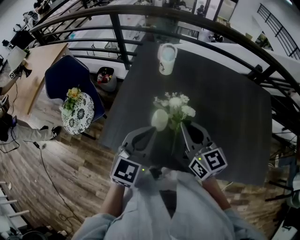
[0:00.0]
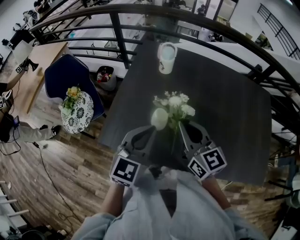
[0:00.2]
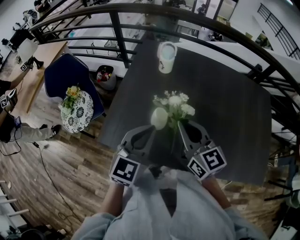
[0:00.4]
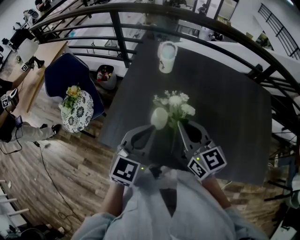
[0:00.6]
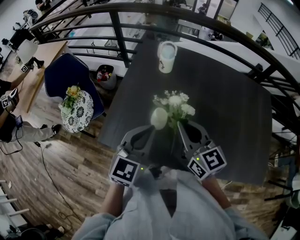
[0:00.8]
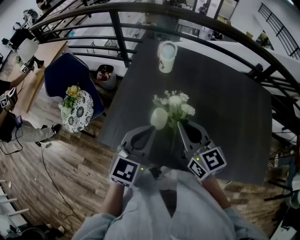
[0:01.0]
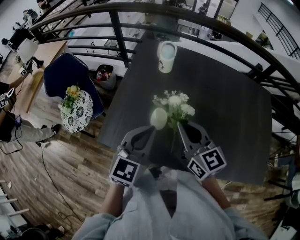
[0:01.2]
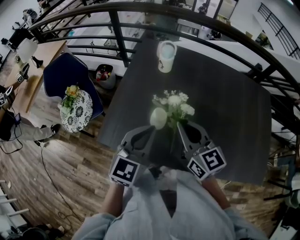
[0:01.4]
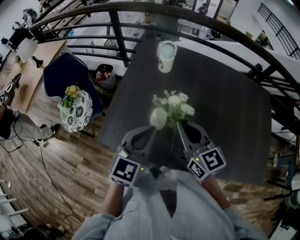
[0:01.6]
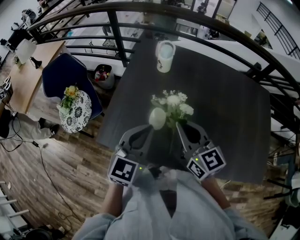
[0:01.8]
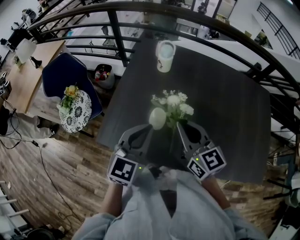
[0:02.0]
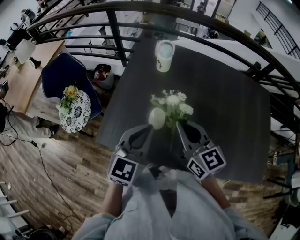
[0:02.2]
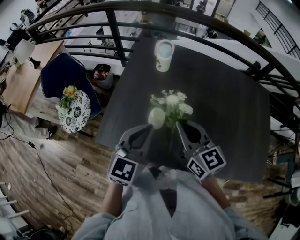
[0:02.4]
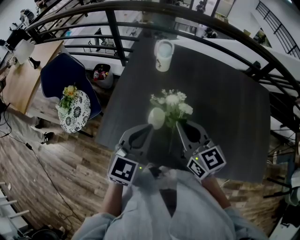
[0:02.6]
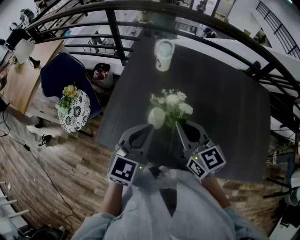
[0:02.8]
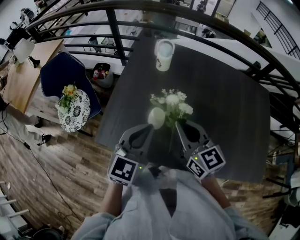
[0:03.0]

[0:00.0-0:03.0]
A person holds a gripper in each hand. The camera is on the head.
0:00.0 to 0:01.6: The two grippers keep their place.
0:01.6 to 0:03.0: Both grippers stay about where they are.

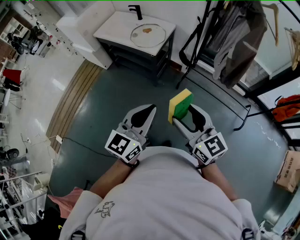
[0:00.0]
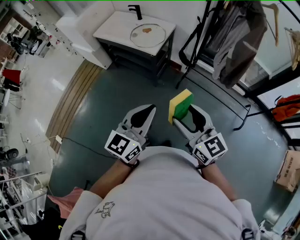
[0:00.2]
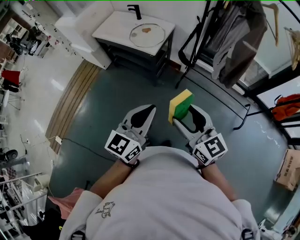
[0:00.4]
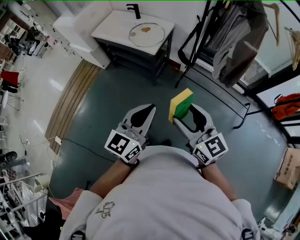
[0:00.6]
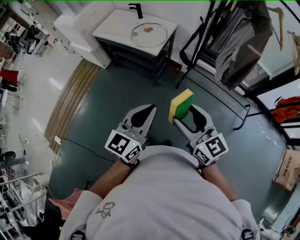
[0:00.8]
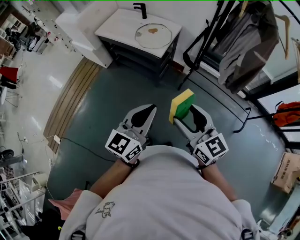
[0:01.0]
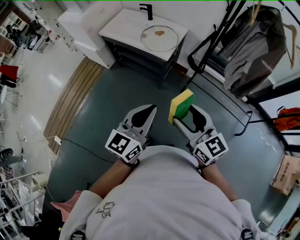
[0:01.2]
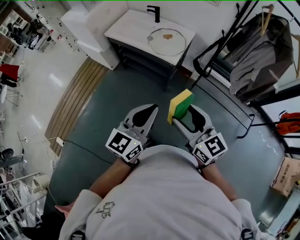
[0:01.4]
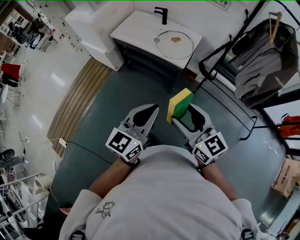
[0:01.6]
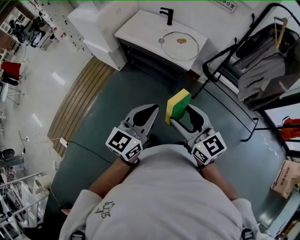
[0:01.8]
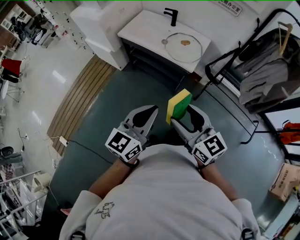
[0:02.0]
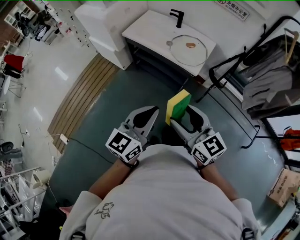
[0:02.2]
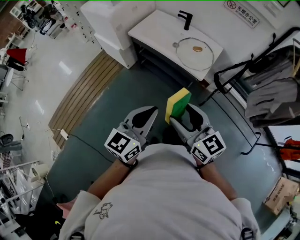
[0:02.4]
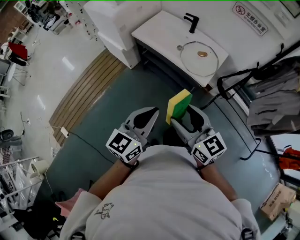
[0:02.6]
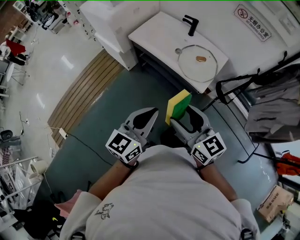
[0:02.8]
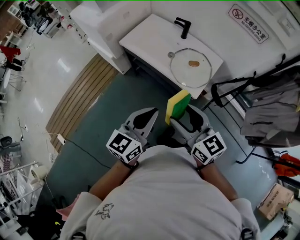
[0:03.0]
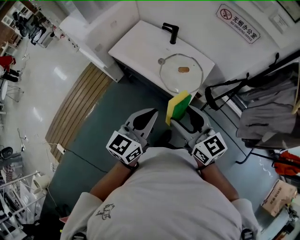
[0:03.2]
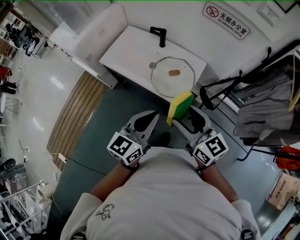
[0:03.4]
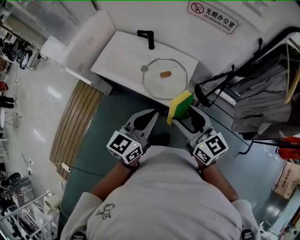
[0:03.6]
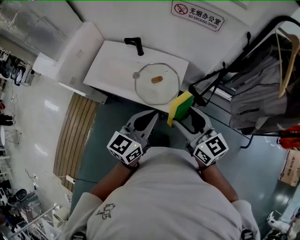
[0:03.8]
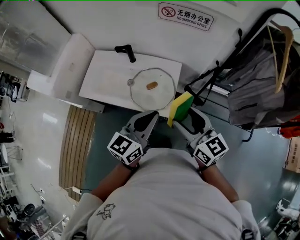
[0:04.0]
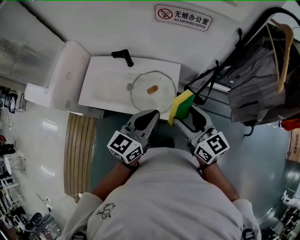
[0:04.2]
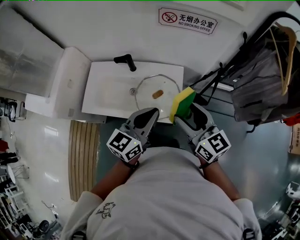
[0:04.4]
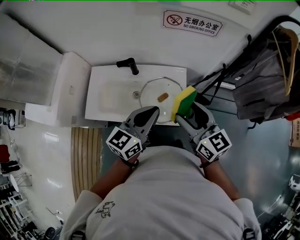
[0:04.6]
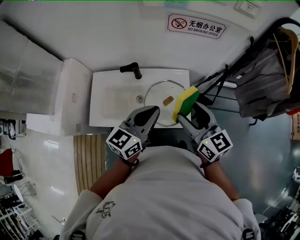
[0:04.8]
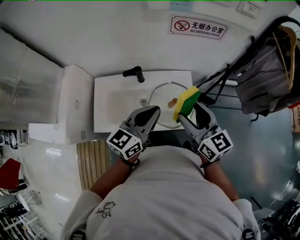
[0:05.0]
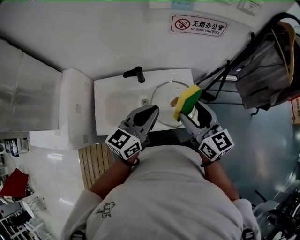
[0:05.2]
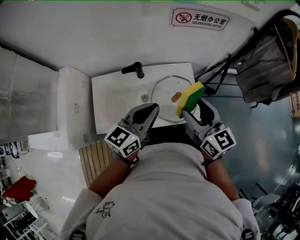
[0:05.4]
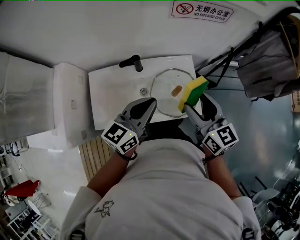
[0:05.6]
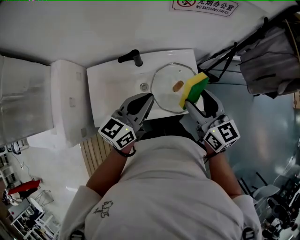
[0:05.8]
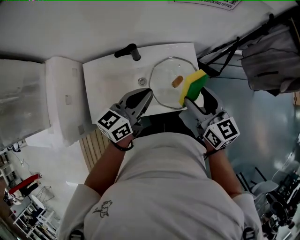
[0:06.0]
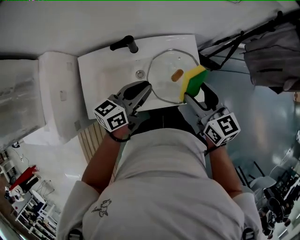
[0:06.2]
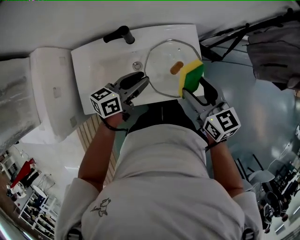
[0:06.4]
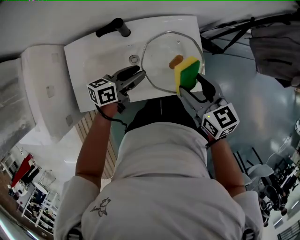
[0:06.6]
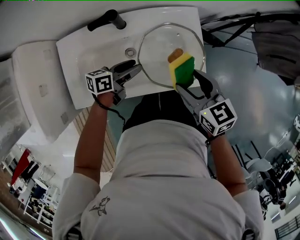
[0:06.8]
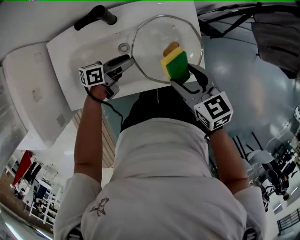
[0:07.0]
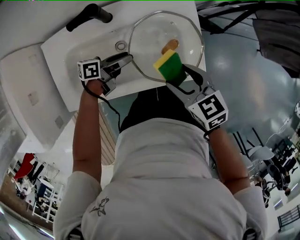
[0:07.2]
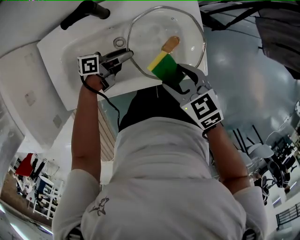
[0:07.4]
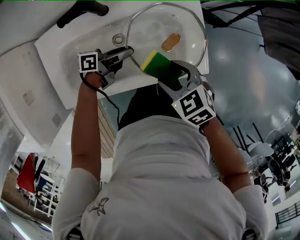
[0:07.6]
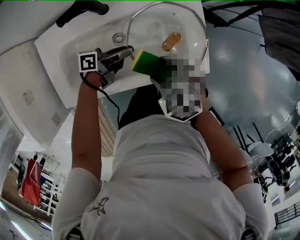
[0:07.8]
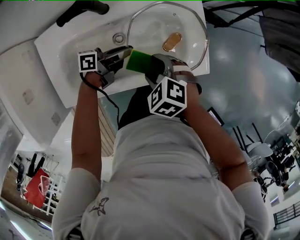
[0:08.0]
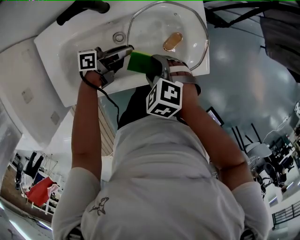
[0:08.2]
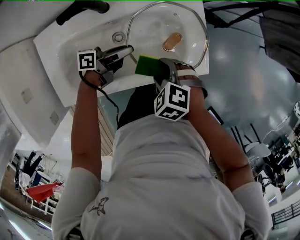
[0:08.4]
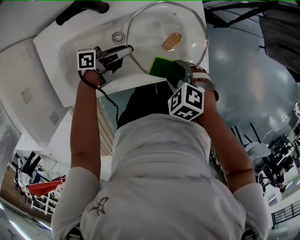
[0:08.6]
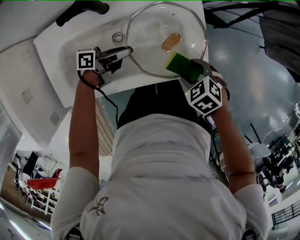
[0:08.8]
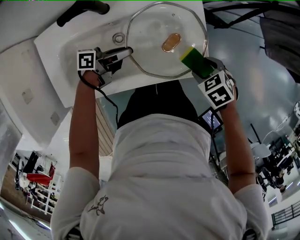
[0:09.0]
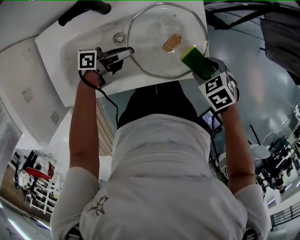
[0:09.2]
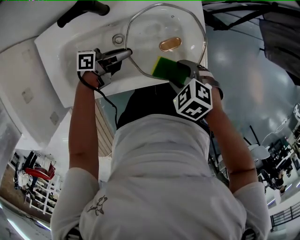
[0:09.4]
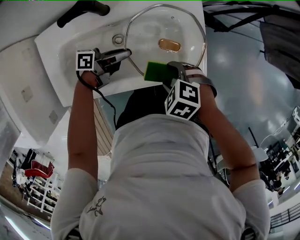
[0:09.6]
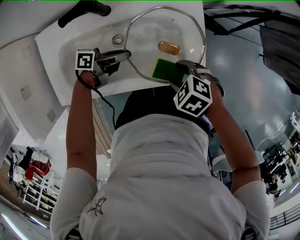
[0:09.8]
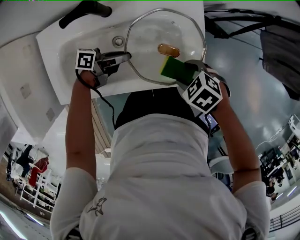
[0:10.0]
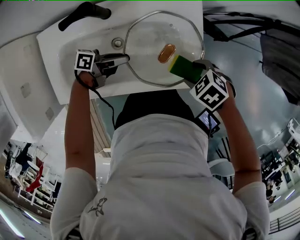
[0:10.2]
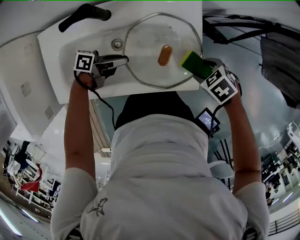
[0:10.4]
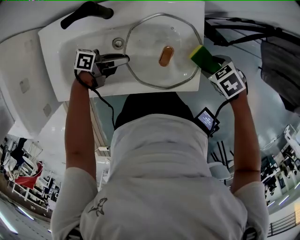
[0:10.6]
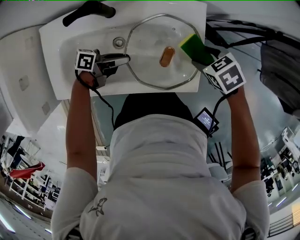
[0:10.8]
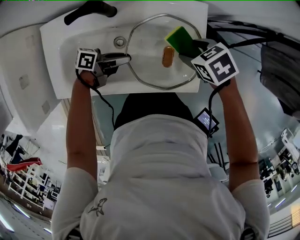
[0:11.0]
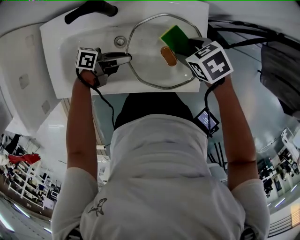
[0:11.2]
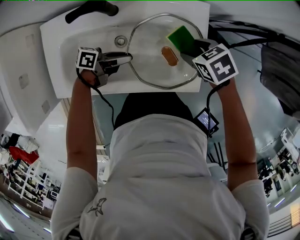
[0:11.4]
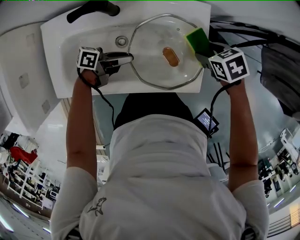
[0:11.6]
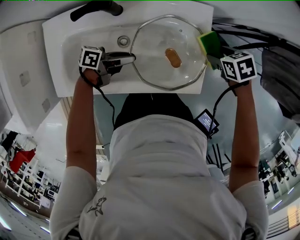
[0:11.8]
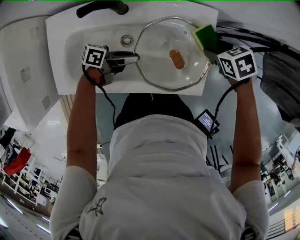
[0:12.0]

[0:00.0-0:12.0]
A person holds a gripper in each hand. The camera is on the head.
0:00.0 to 0:01.6: Both grippers move to the left and forward, roughly 25 cm.
0:01.6 to 0:03.0: The grippers both shift forward by about 25 cm.
0:03.0 to 0:04.4: The left gripper changes place by approximately 30 cm, and turns by roughly 30 degrees. The right gripper changes place by roughly 25 cm, and turns by about 30 degrees.
0:04.4 to 0:06.0: The left gripper heads to the left, forward and downward, covering some 20 cm, and swivels about 20 degrees. The right gripper shifts roughly 15 cm to the left, downward and forward, and rotates about 20 degrees.
0:06.0 to 0:07.6: The grippers both shift downward by roughly 30 cm. The left gripper twists roughly 40 degrees counterclockwise, seen from behind, and opens its fingers, while the right gripper angles its fingers downward, by roughly 40 degrees.
0:07.6 to 0:09.0: The left gripper closes. Meanwhile the right gripper ends up about 15 cm from where it was, and rotates some 20 degrees.
0:10.4 to 0:12.0: The right gripper shifts by about 15 cm.

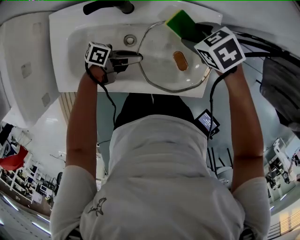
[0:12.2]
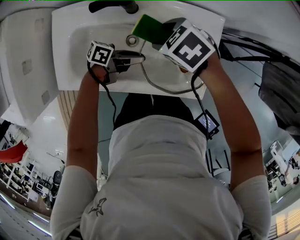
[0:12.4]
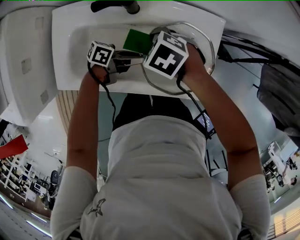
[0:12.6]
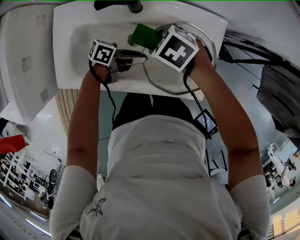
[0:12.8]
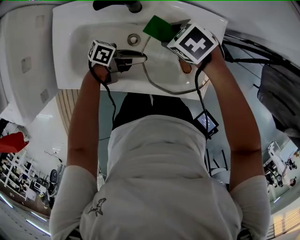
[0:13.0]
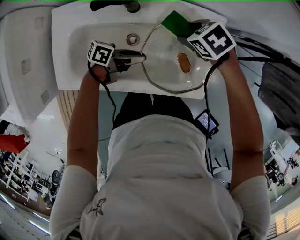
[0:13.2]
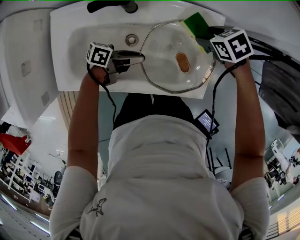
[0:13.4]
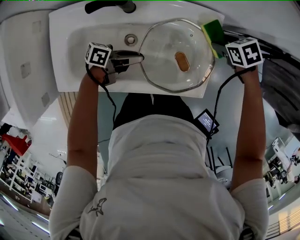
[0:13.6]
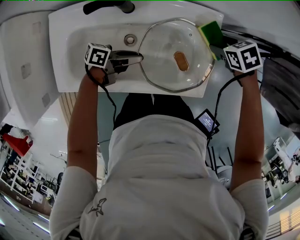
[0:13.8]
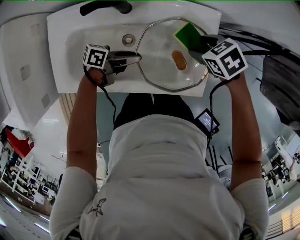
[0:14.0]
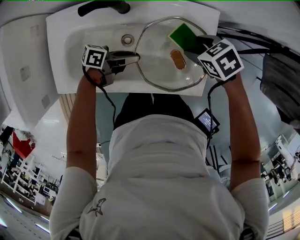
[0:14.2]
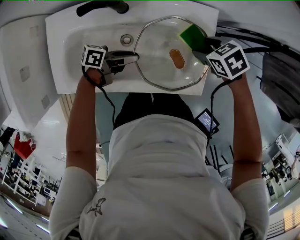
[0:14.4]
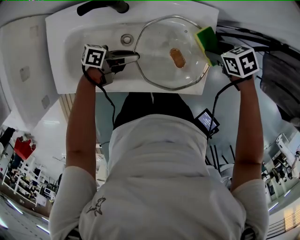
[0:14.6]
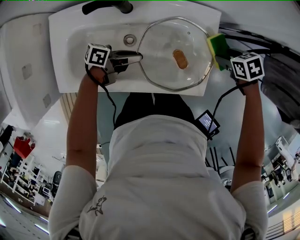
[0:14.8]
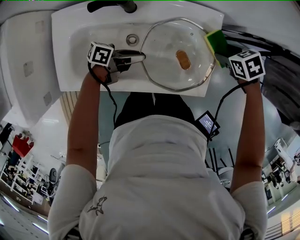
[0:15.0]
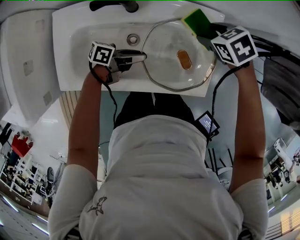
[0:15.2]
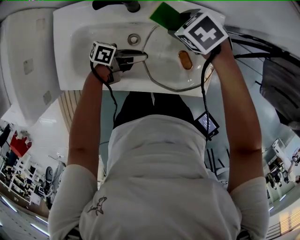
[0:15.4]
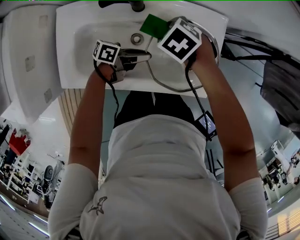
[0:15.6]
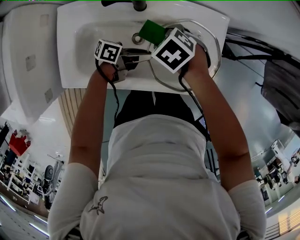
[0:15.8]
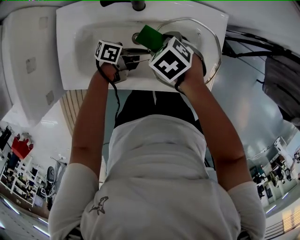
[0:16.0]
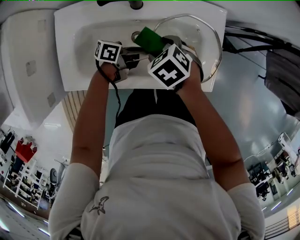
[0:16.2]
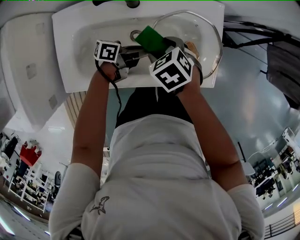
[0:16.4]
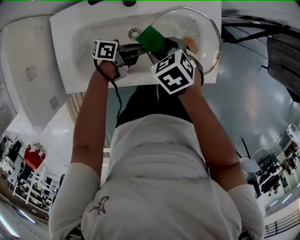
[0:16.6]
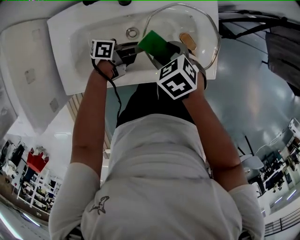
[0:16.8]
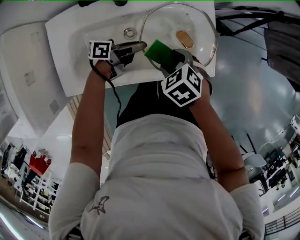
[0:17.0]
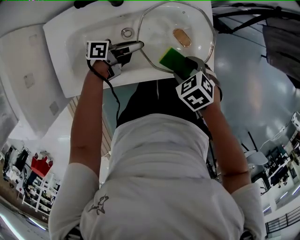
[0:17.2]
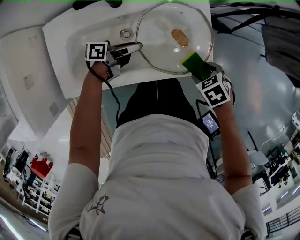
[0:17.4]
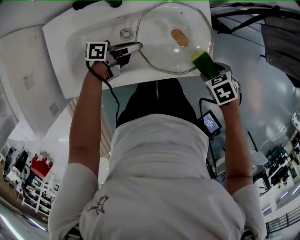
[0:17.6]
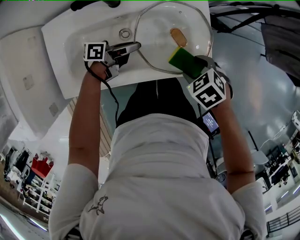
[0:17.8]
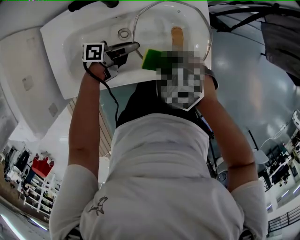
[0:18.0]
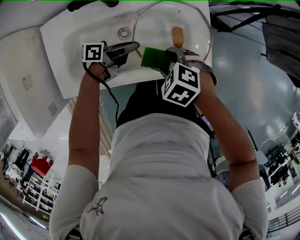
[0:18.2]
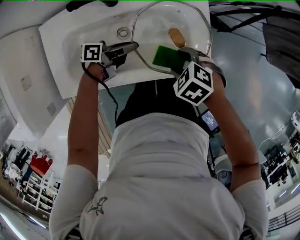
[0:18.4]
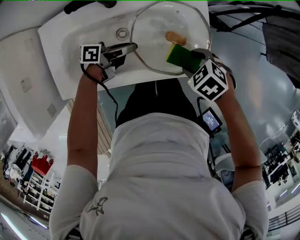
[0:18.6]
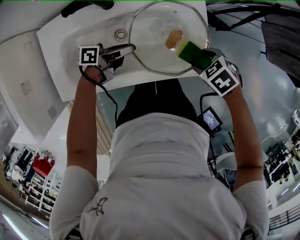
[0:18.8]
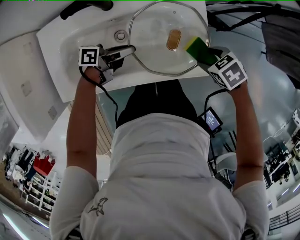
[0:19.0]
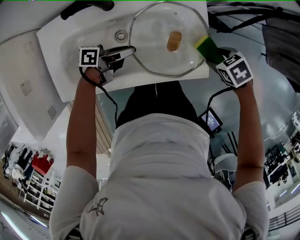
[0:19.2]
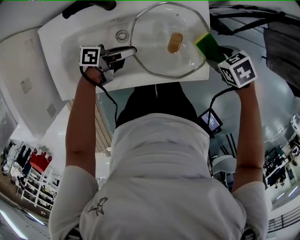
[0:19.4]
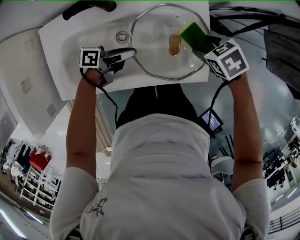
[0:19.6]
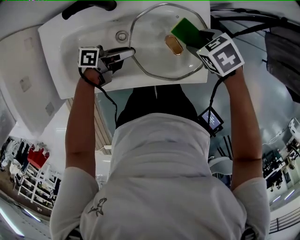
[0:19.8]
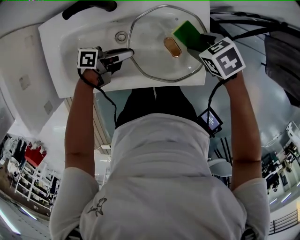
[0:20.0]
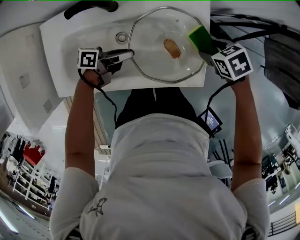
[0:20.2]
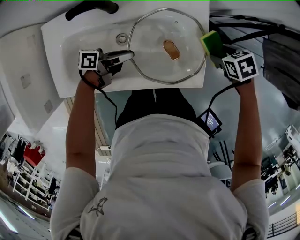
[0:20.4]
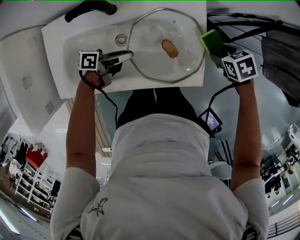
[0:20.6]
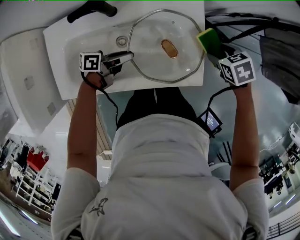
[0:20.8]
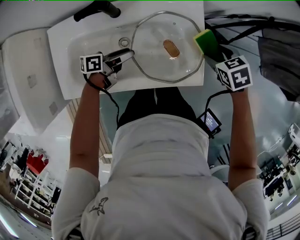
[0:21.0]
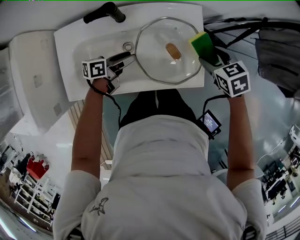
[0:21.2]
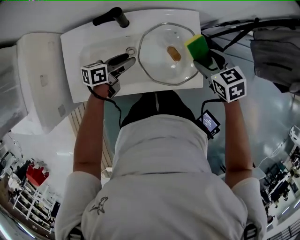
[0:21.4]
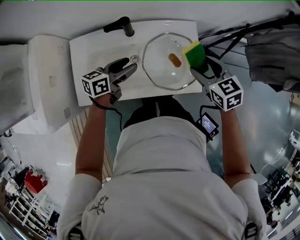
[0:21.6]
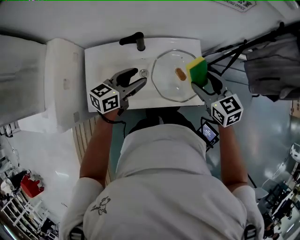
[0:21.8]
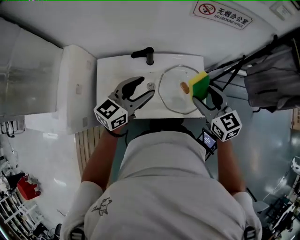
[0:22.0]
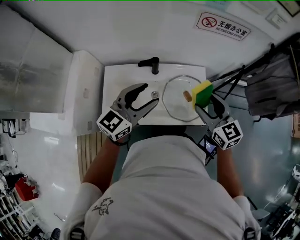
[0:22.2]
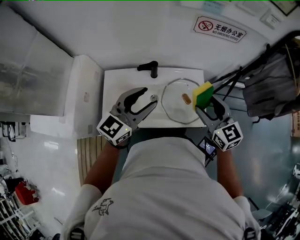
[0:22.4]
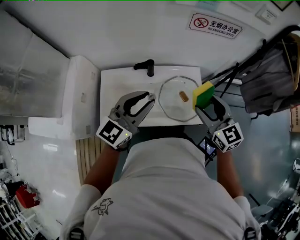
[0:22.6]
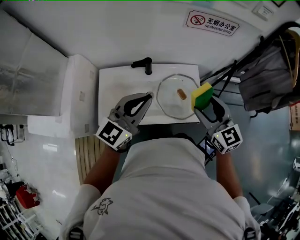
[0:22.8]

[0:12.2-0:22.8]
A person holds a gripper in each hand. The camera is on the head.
0:12.2 to 0:13.8: The right gripper moves approximately 10 cm.
0:13.8 to 0:15.2: The right gripper changes place by approximately 10 cm.
0:15.2 to 0:16.8: The right gripper changes place by roughly 20 cm.
0:16.8 to 0:18.2: The right gripper changes its angle by roughly 20 degrees.
0:18.2 to 0:19.8: The right gripper shifts by some 15 cm, and swivels approximately 20 degrees.
0:19.8 to 0:21.2: The left gripper opens, while the right gripper shifts by roughly 10 cm.
0:21.2 to 0:22.8: Both grippers travel together upward, approximately 35 cm. The left gripper rolls clockwise, seen from behind, by approximately 70 degrees, and closes, while the right gripper tilts its fingers approximately 40 degrees upward.
